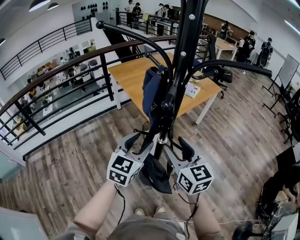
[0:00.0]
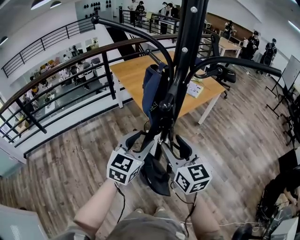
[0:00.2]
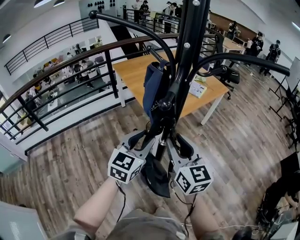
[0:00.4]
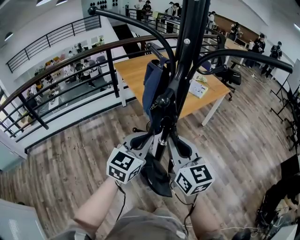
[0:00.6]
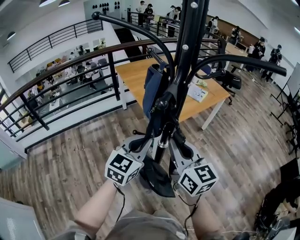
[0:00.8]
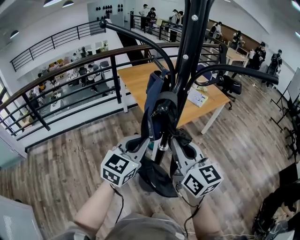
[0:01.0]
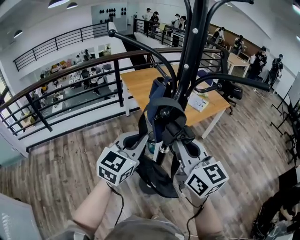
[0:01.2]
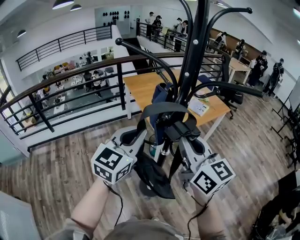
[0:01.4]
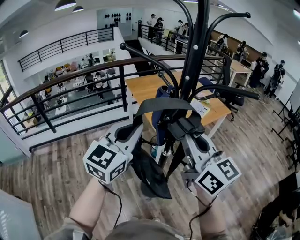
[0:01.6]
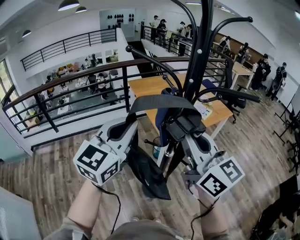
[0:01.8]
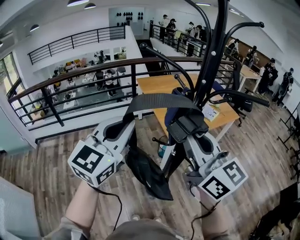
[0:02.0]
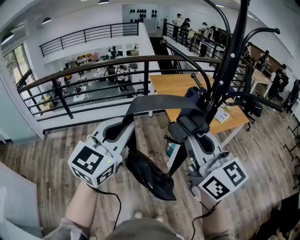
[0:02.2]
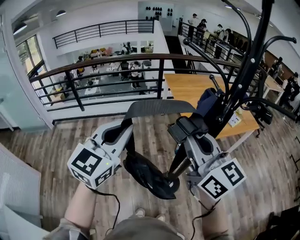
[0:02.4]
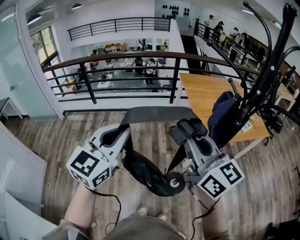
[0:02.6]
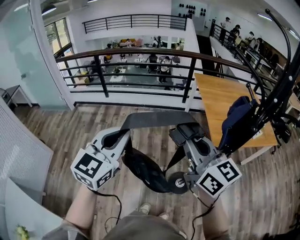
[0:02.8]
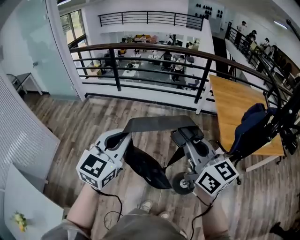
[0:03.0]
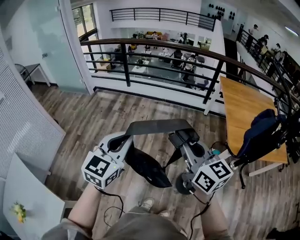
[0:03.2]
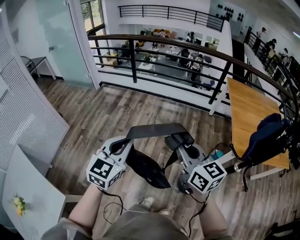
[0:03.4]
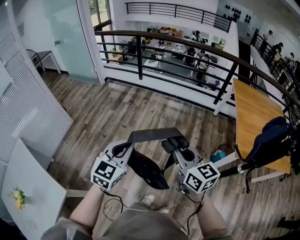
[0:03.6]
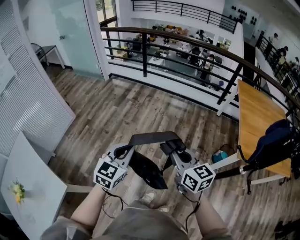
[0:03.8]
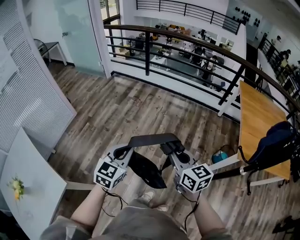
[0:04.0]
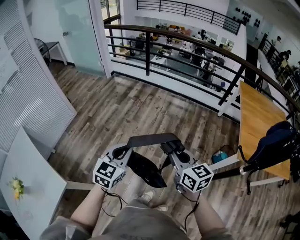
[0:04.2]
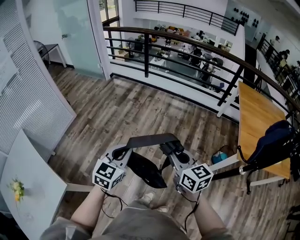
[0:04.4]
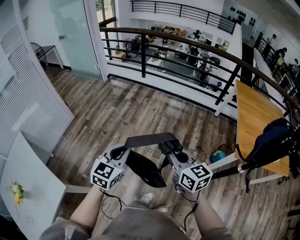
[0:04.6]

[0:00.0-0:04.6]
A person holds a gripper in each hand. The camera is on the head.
0:00.0 to 0:01.6: Both grippers travel together upward, about 20 cm. The left gripper closes its fingers; the right gripper changes its angle by some 20 degrees, and closes.
0:01.6 to 0:03.0: The right gripper shifts by roughly 30 cm, and changes its angle by roughly 40 degrees; the left gripper moves roughly 35 cm, and changes its angle by roughly 40 degrees.
0:03.0 to 0:04.6: Both grippers move downward and to the left, roughly 20 cm. The right gripper rotates some 20 degrees.

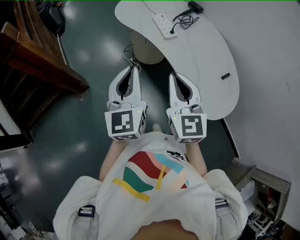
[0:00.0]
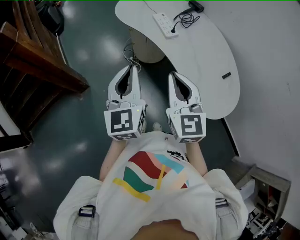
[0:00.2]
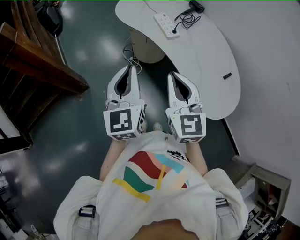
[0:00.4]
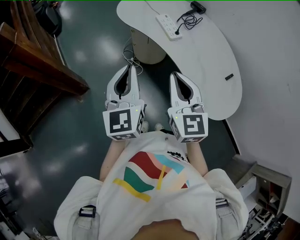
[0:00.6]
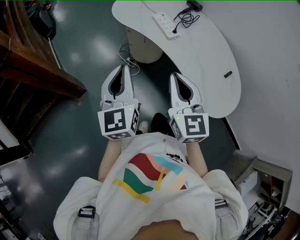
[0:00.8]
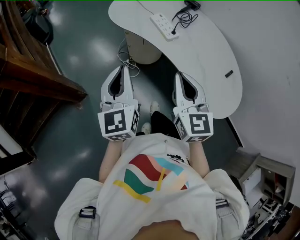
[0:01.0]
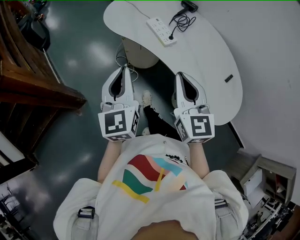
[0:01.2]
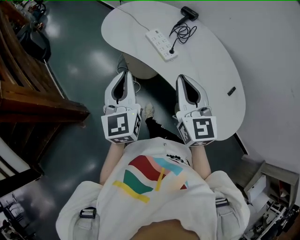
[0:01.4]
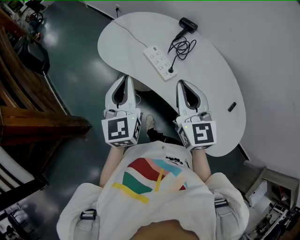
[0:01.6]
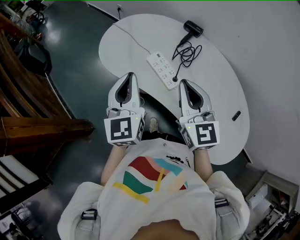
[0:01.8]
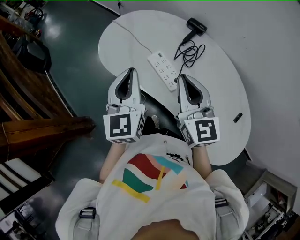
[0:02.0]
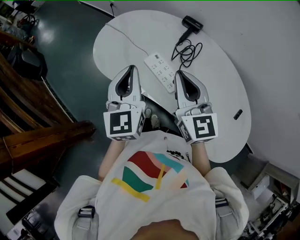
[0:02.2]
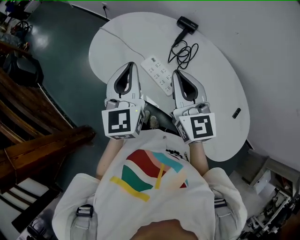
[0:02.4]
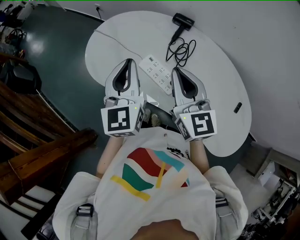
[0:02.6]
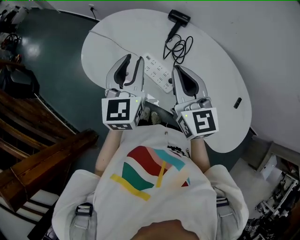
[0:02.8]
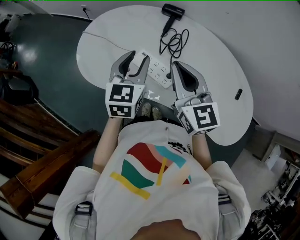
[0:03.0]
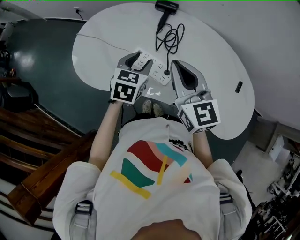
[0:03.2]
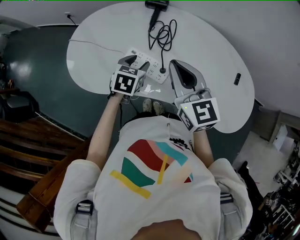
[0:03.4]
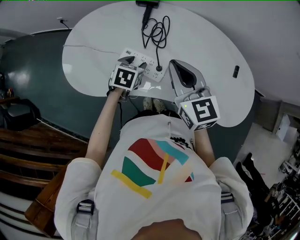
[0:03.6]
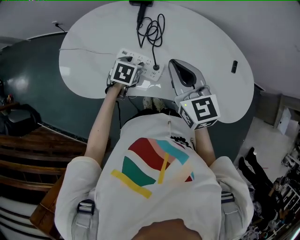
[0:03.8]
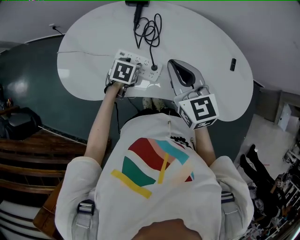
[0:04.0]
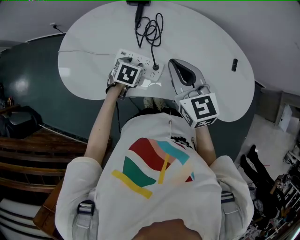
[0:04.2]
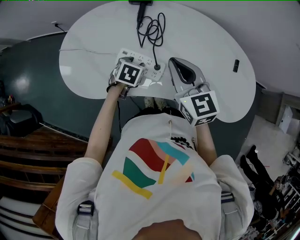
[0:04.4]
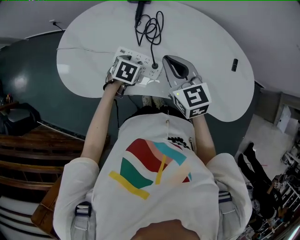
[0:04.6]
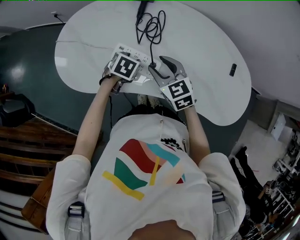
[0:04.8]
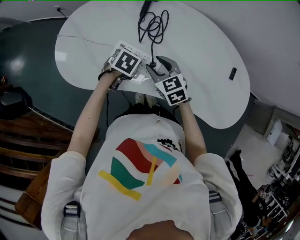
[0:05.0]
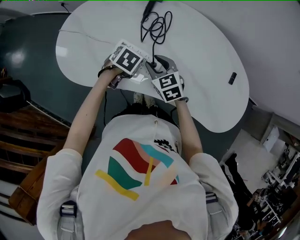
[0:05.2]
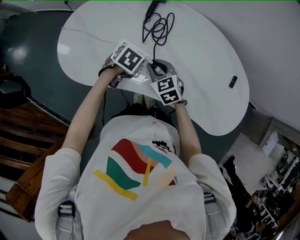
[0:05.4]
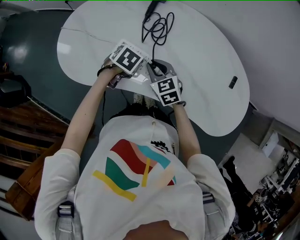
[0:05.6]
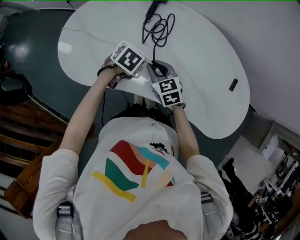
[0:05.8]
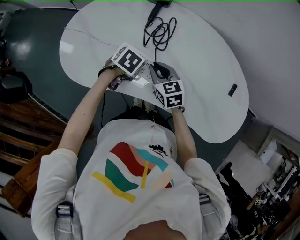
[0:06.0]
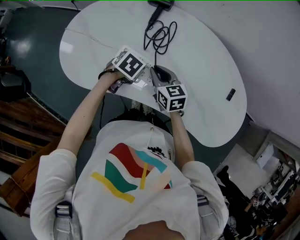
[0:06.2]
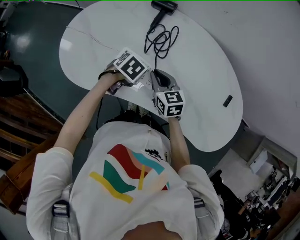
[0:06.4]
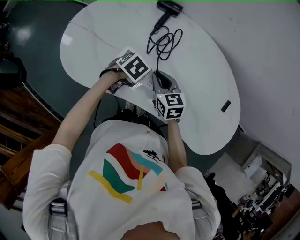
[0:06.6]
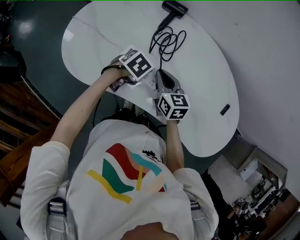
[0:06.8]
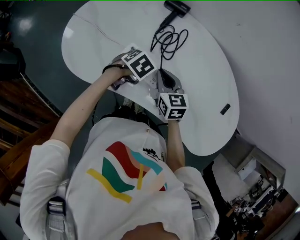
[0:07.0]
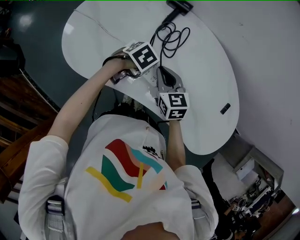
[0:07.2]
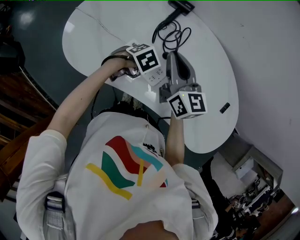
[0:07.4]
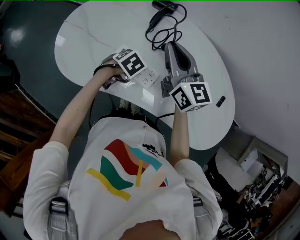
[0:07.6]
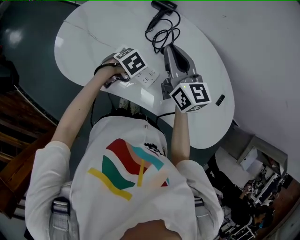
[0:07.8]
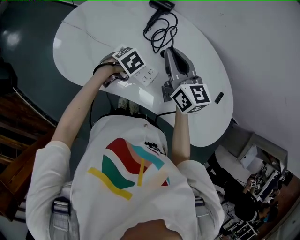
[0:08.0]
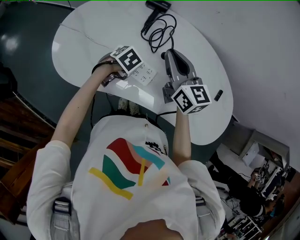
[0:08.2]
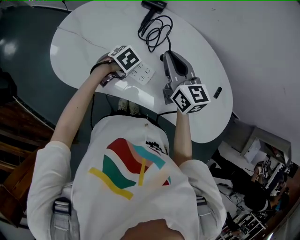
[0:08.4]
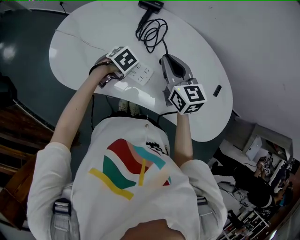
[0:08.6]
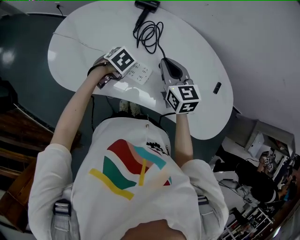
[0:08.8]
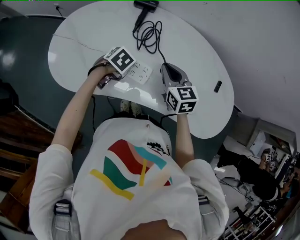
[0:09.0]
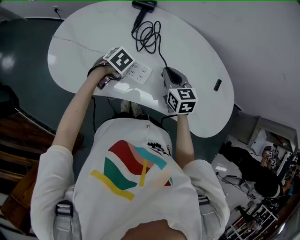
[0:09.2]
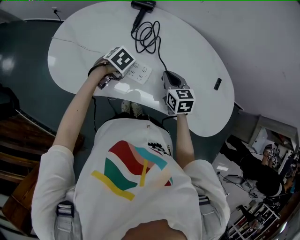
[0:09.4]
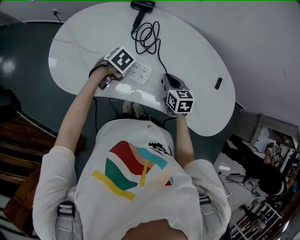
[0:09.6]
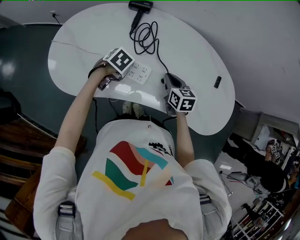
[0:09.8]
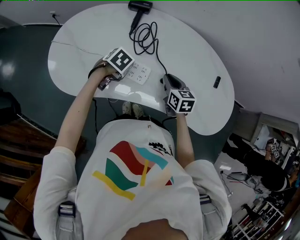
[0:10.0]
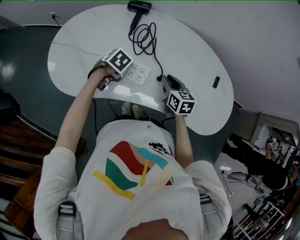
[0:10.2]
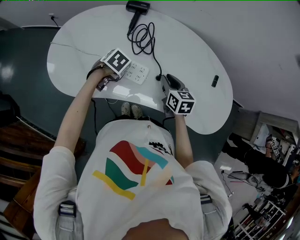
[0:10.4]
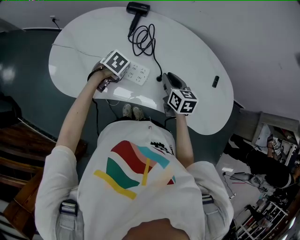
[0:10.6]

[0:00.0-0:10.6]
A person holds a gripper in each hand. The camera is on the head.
0:00.0 to 0:01.6: The two grippers go some 25 cm forward.
0:01.6 to 0:03.0: The left gripper shifts approximately 20 cm forward and to the right, changes its angle by roughly 40 degrees, and opens its fingers. The right gripper shifts about 15 cm forward.
0:03.0 to 0:04.6: The left gripper heads downward, covering about 20 cm, and angles its fingers downward, by about 40 degrees. Meanwhile the right gripper goes some 10 cm downward.
0:04.6 to 0:06.0: The right gripper moves downward, about 15 cm, and opens and closes again.
0:06.0 to 0:07.6: The right gripper heads upward, covering some 20 cm, and changes its angle by approximately 30 degrees.
0:07.6 to 0:09.0: The right gripper heads downward, covering approximately 10 cm, and rotates some 30 degrees.
0:09.0 to 0:10.6: The right gripper changes place by roughly 5 cm.

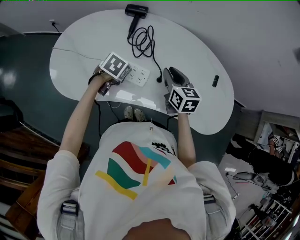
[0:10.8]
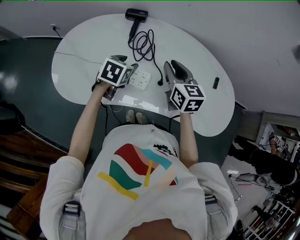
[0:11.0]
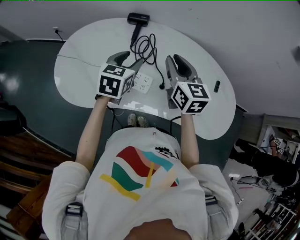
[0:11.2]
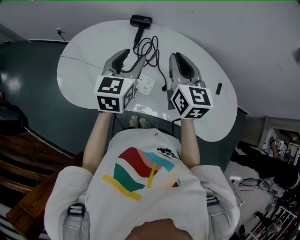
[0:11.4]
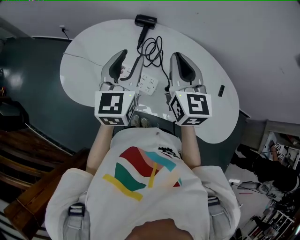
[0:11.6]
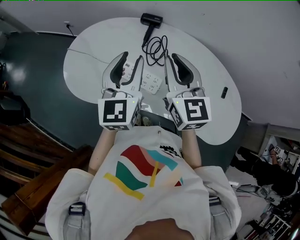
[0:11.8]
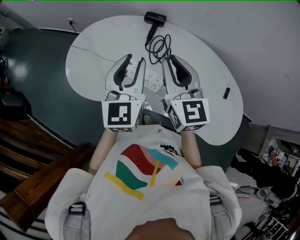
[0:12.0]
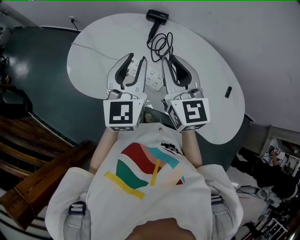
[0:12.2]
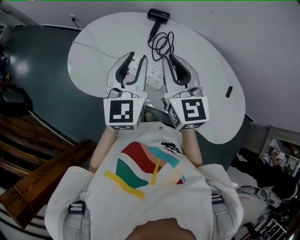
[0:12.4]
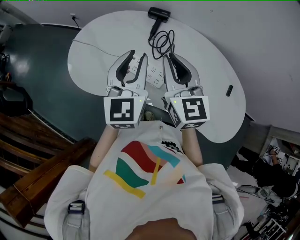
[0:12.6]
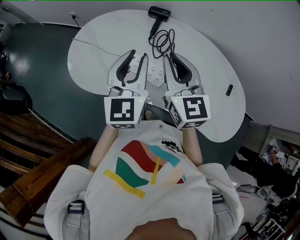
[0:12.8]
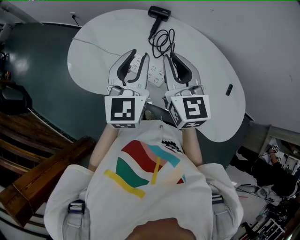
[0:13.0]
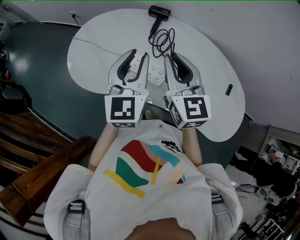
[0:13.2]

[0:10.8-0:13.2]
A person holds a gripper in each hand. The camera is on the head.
0:10.8 to 0:12.0: The left gripper travels upward by about 30 cm, tips its fingers upward by some 70 degrees, and closes. Meanwhile the right gripper heads upward and to the left, covering some 20 cm, and turns by about 30 degrees.
0:12.0 to 0:13.2: The grippers make only small movements.

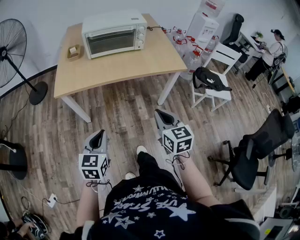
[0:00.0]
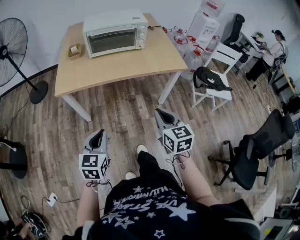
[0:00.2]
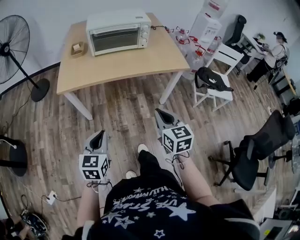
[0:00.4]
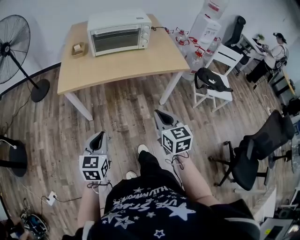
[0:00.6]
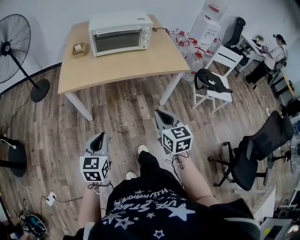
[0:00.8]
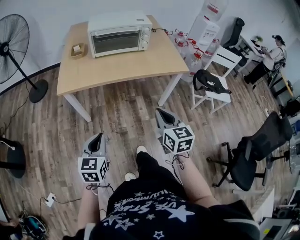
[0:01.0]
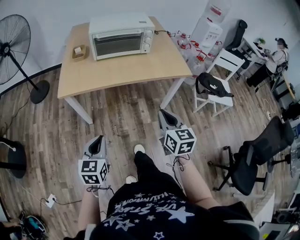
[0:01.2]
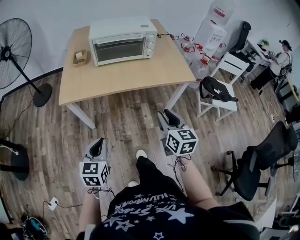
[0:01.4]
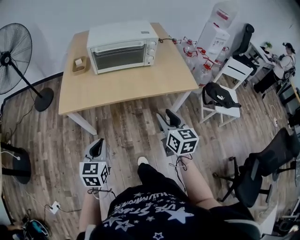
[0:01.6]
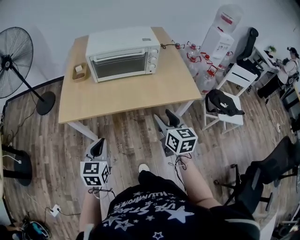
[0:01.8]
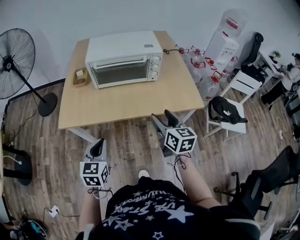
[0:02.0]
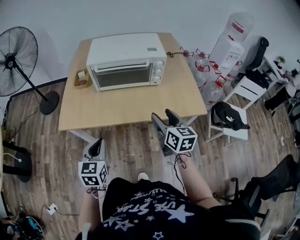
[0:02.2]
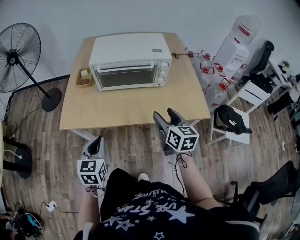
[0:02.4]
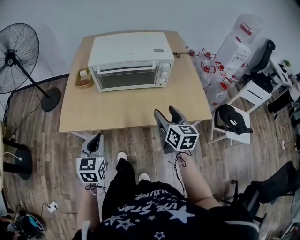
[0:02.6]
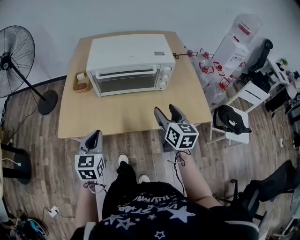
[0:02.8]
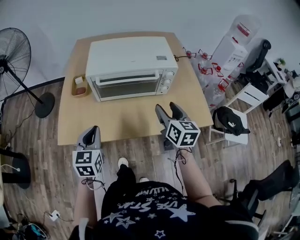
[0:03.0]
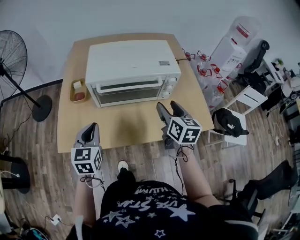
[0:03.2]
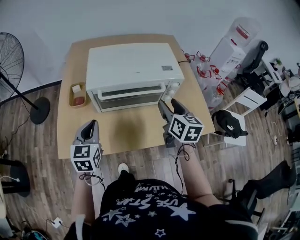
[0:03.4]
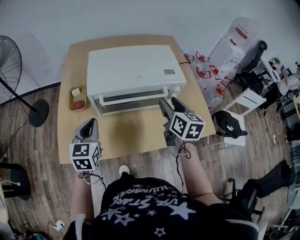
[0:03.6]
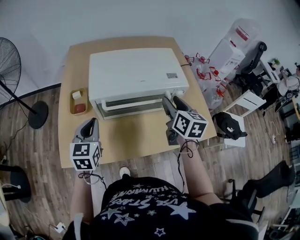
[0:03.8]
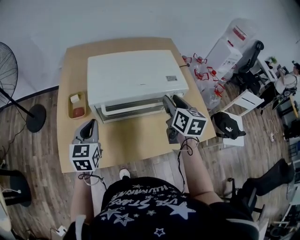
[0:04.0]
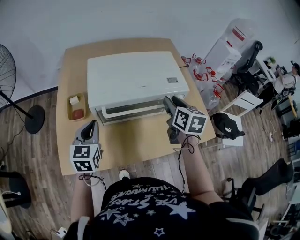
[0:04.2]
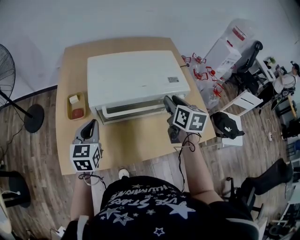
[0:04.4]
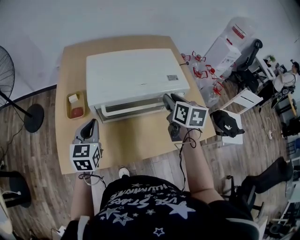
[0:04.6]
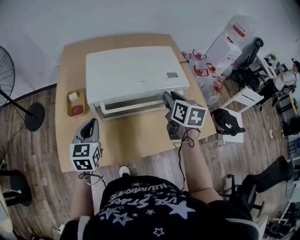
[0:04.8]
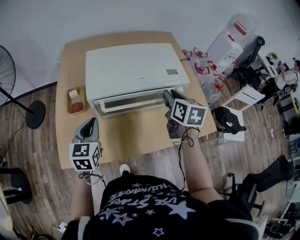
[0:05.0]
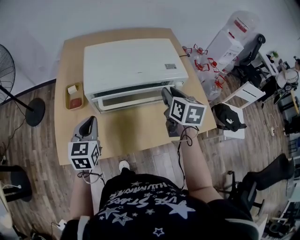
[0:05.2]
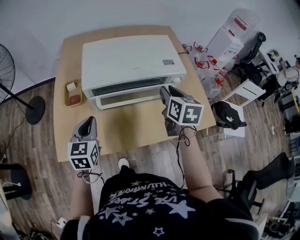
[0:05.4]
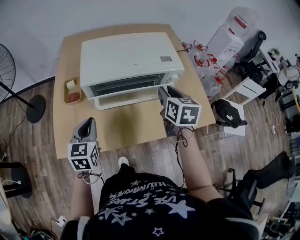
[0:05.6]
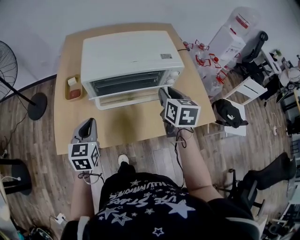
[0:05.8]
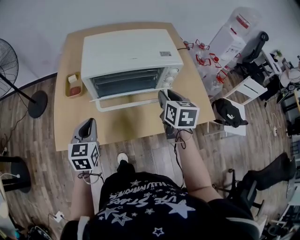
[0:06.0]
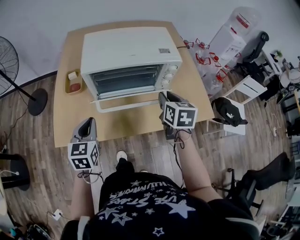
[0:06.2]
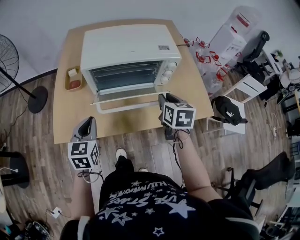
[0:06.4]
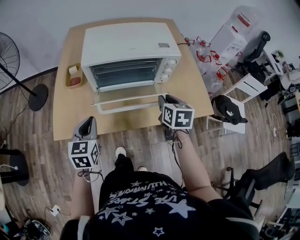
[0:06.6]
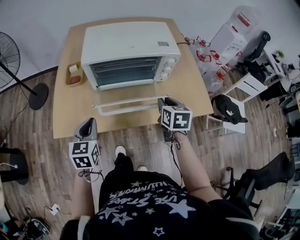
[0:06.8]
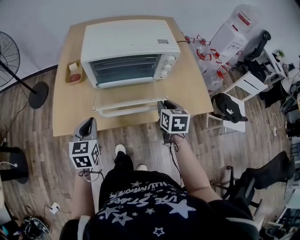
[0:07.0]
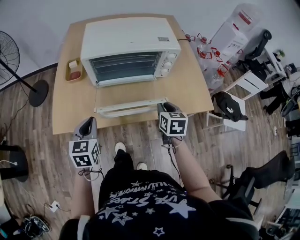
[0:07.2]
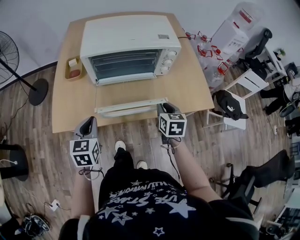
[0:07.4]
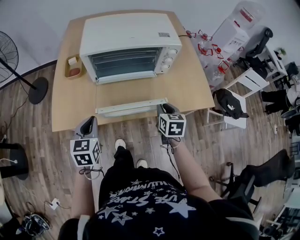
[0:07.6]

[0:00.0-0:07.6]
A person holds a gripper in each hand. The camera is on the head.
0:00.0 to 0:01.6: The two grippers go roughly 10 cm forward. The right gripper opens up.
0:01.6 to 0:03.0: Both grippers move forward, some 30 cm.
0:03.0 to 0:04.6: The grippers both shift forward by about 15 cm. The right gripper closes its fingers.
0:04.6 to 0:06.0: Both grippers travel together backward, approximately 10 cm.
0:06.0 to 0:07.6: The right gripper is displaced downward and backward by approximately 15 cm, while the left gripper is displaced backward by roughly 10 cm.
